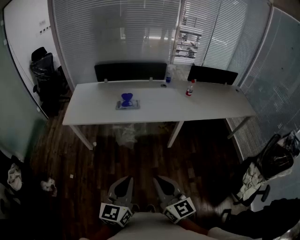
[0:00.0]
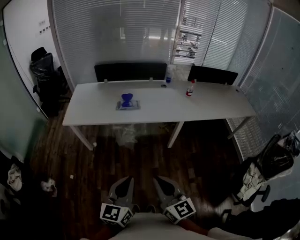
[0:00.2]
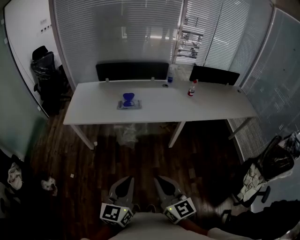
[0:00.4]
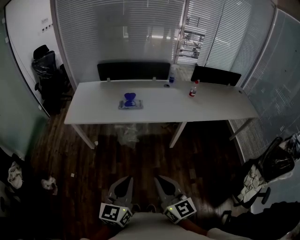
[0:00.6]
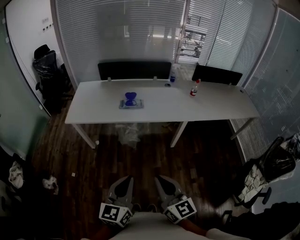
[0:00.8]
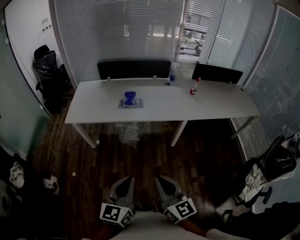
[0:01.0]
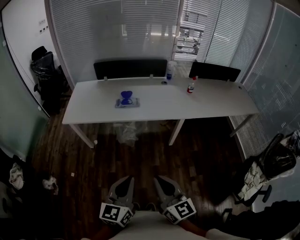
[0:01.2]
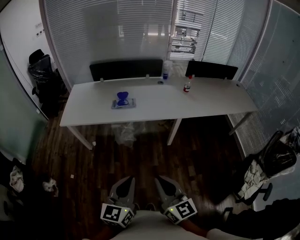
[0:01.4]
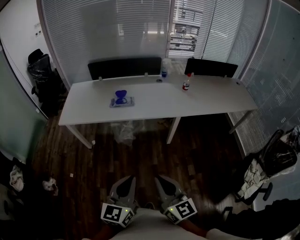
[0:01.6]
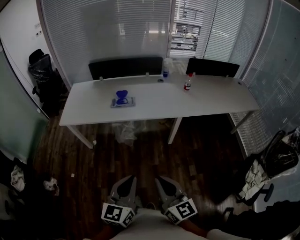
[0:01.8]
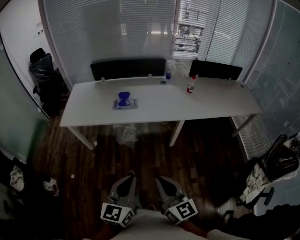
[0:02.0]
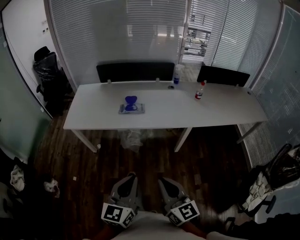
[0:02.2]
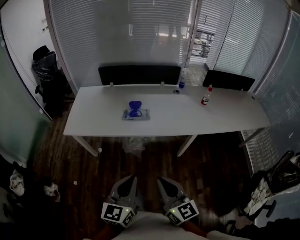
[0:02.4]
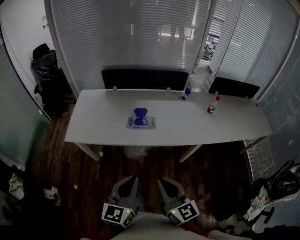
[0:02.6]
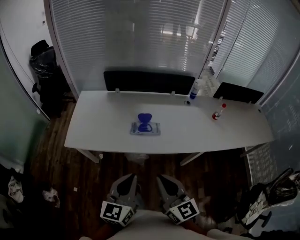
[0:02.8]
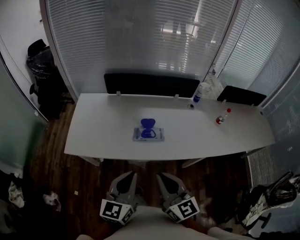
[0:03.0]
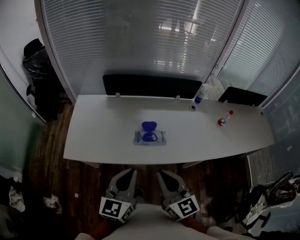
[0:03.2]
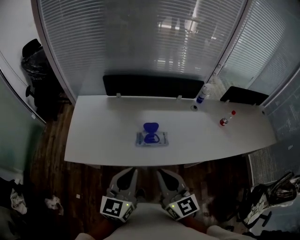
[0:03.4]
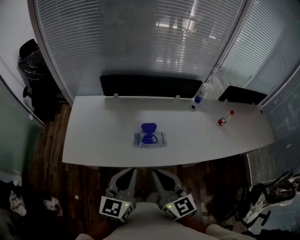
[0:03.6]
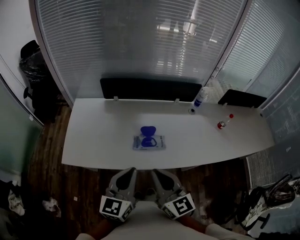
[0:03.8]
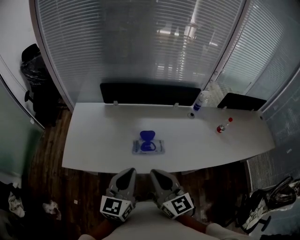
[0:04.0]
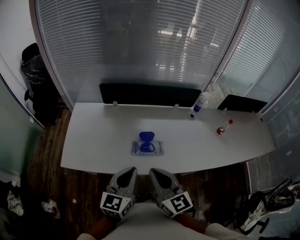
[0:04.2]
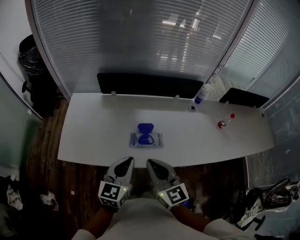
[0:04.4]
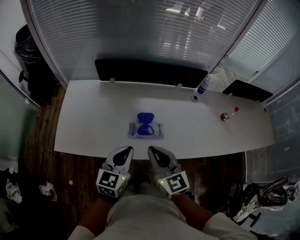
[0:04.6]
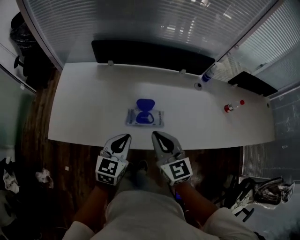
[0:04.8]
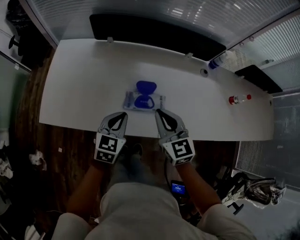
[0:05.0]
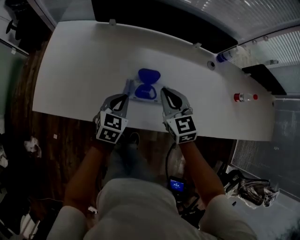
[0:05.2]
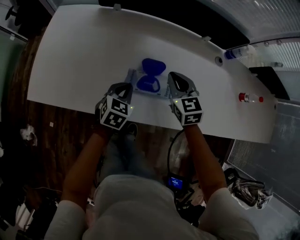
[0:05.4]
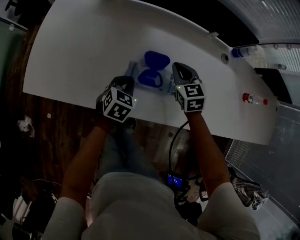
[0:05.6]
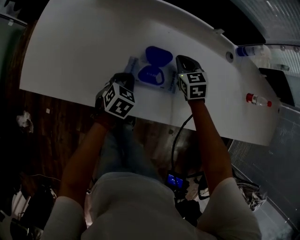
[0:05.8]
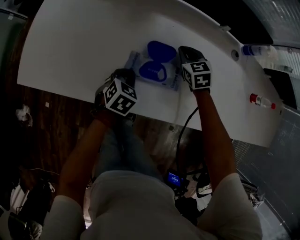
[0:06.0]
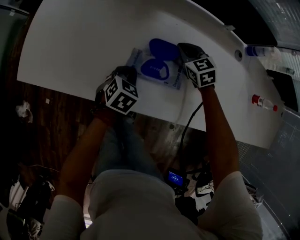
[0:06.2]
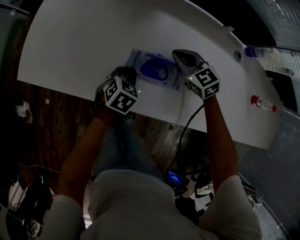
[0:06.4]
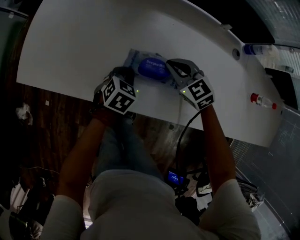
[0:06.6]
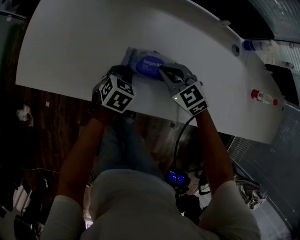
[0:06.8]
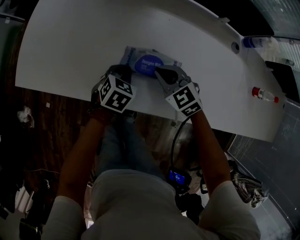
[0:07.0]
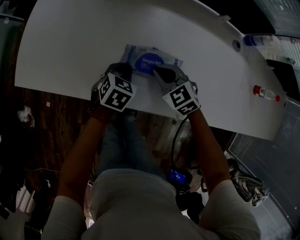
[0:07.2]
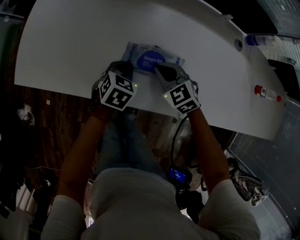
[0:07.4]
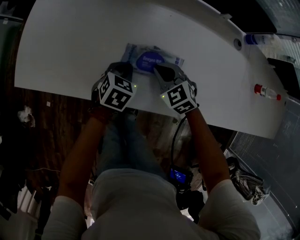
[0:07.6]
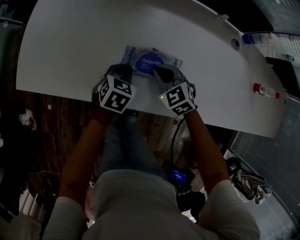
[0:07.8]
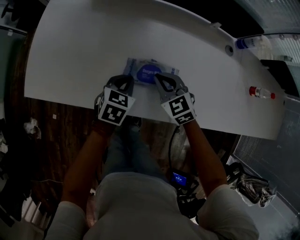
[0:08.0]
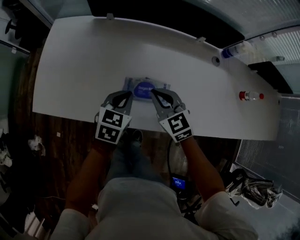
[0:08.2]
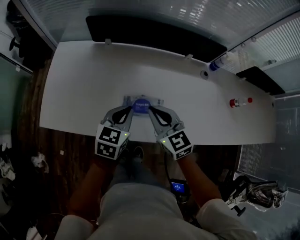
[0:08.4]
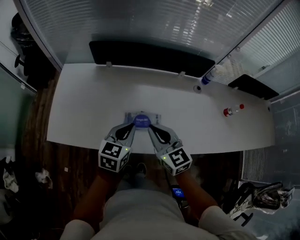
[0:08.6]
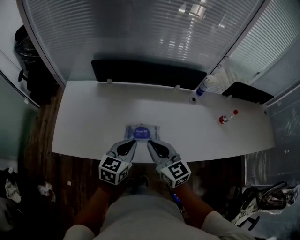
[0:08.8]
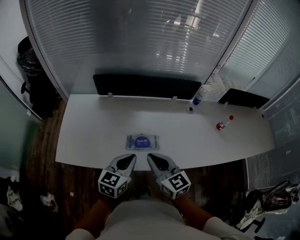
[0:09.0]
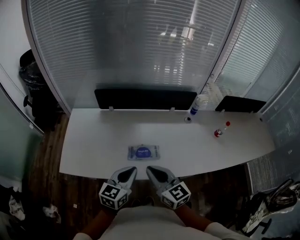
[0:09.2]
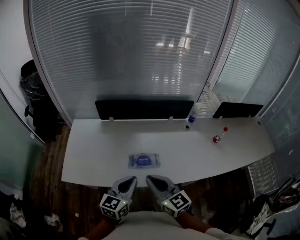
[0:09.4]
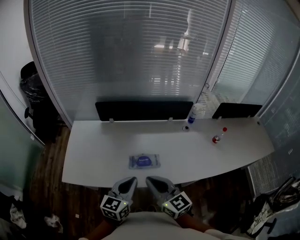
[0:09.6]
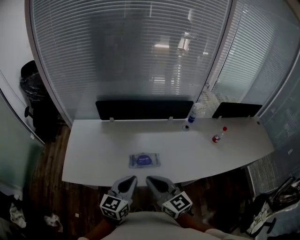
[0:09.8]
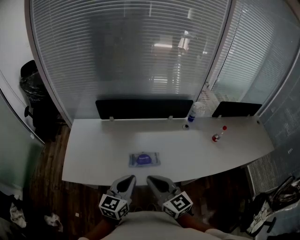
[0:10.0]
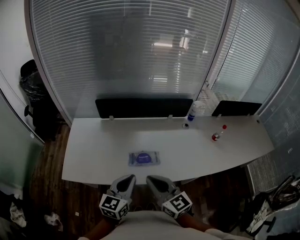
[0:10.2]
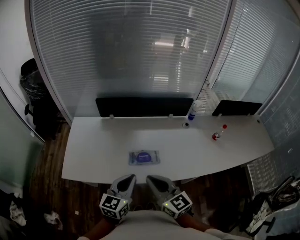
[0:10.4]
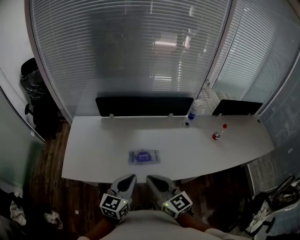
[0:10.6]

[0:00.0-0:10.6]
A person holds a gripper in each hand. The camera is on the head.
0:00.0 to 0:01.6: The grippers both shift to the right by roughly 5 cm.
0:01.6 to 0:03.0: The pair of grippers is taken forward and to the left, about 40 cm.
0:03.0 to 0:04.6: The right gripper is displaced forward by about 15 cm. The left gripper is displaced forward and downward by approximately 20 cm.
0:04.6 to 0:06.0: The left gripper heads downward, covering roughly 30 cm, and points its fingers about 40 degrees further downward, while the right gripper heads downward and forward, covering approximately 40 cm, and tips its fingers downward by about 40 degrees.
0:06.0 to 0:07.6: The right gripper moves backward and to the left, some 15 cm, and changes its angle by some 20 degrees.
0:07.6 to 0:09.0: The two grippers go about 30 cm upward. The right gripper points its fingers about 30 degrees further upward. Meanwhile the left gripper angles its fingers upward, by roughly 40 degrees.
0:09.0 to 0:10.6: Both grippers travel together backward, approximately 5 cm.

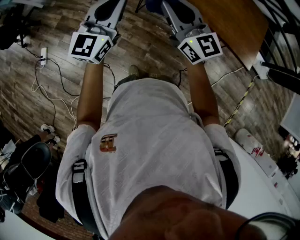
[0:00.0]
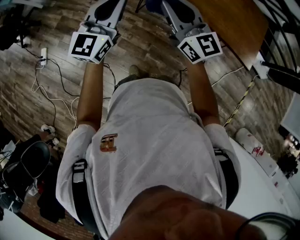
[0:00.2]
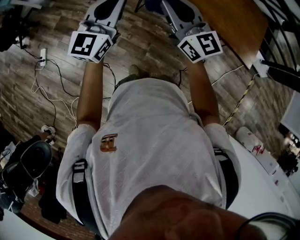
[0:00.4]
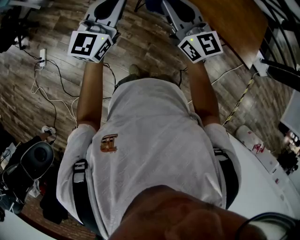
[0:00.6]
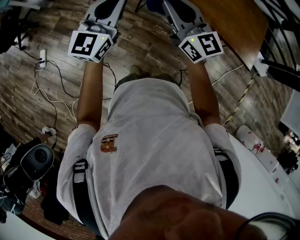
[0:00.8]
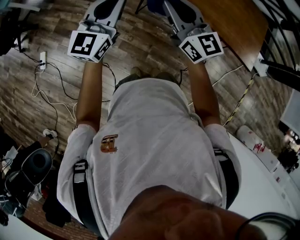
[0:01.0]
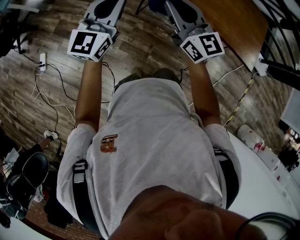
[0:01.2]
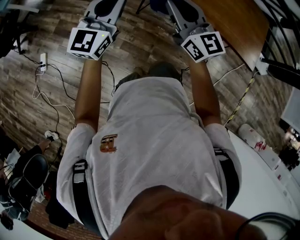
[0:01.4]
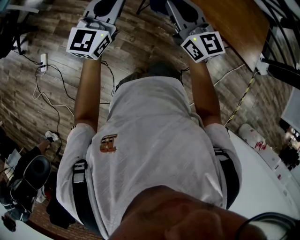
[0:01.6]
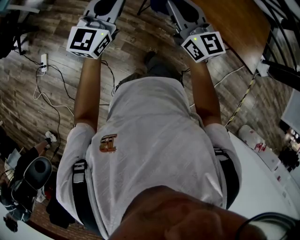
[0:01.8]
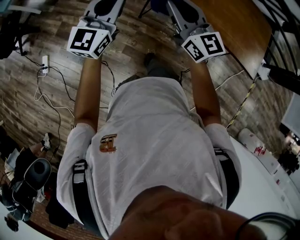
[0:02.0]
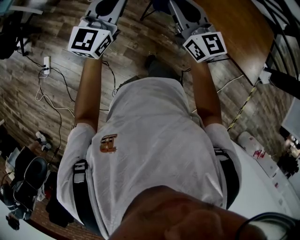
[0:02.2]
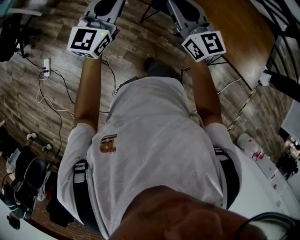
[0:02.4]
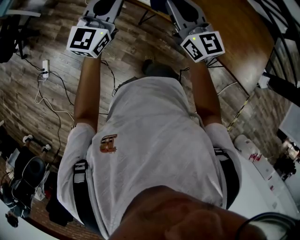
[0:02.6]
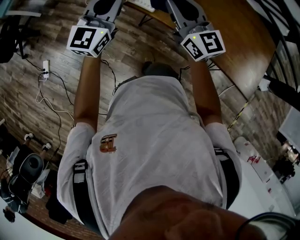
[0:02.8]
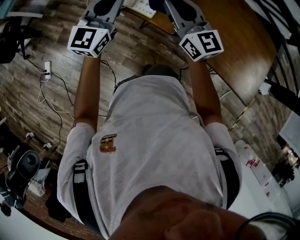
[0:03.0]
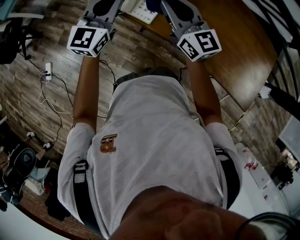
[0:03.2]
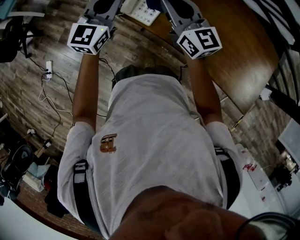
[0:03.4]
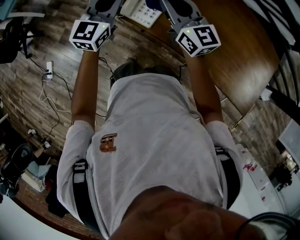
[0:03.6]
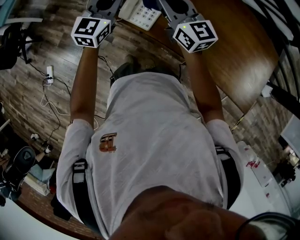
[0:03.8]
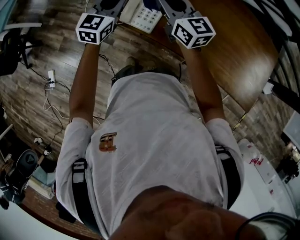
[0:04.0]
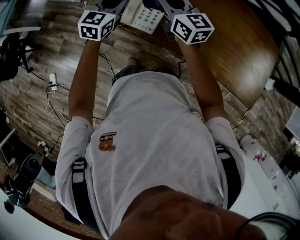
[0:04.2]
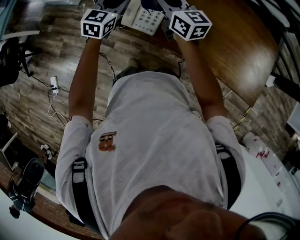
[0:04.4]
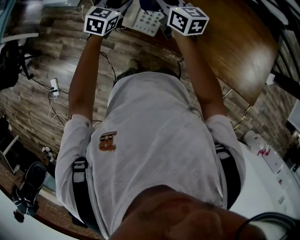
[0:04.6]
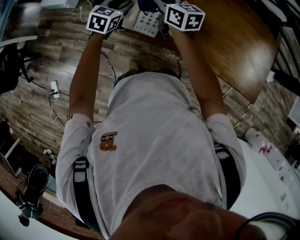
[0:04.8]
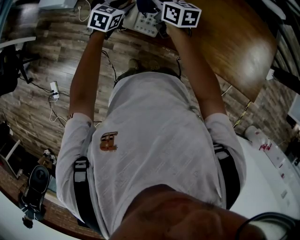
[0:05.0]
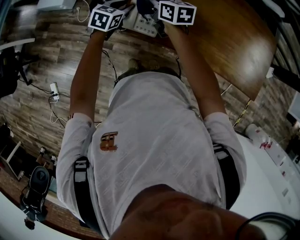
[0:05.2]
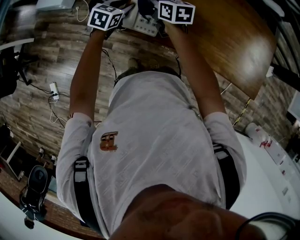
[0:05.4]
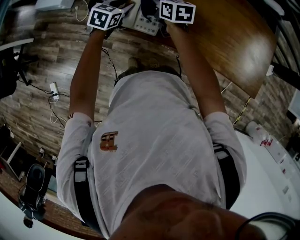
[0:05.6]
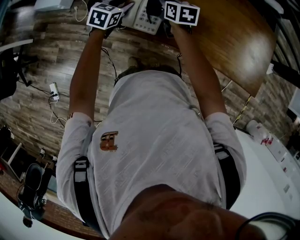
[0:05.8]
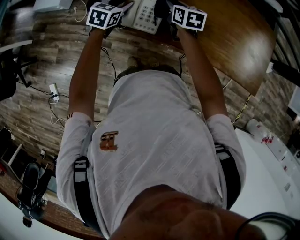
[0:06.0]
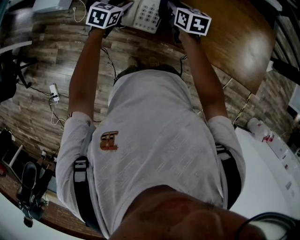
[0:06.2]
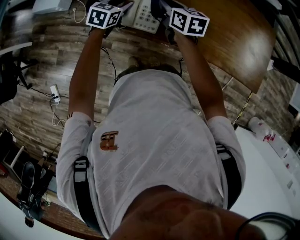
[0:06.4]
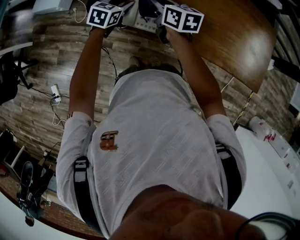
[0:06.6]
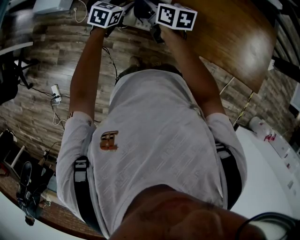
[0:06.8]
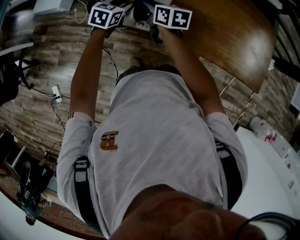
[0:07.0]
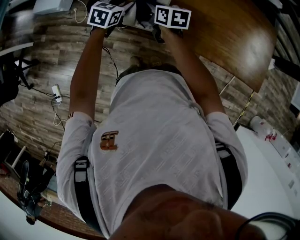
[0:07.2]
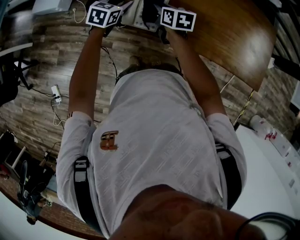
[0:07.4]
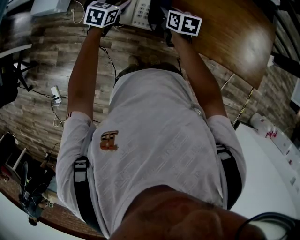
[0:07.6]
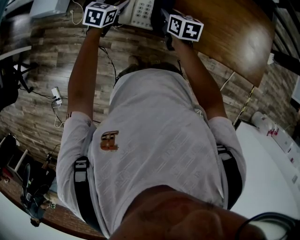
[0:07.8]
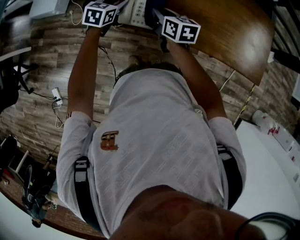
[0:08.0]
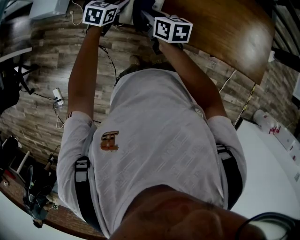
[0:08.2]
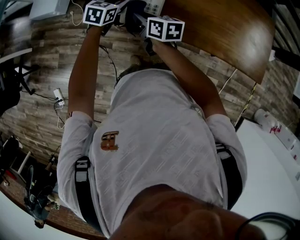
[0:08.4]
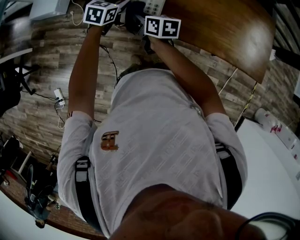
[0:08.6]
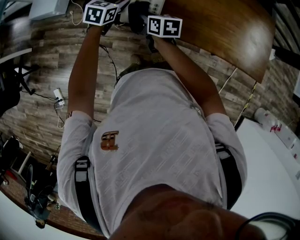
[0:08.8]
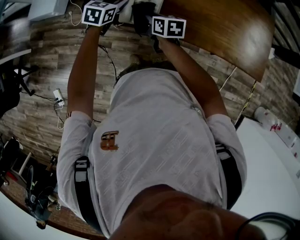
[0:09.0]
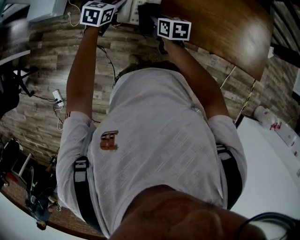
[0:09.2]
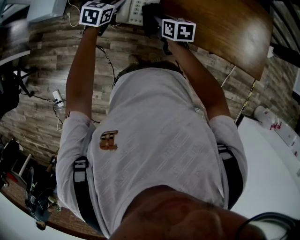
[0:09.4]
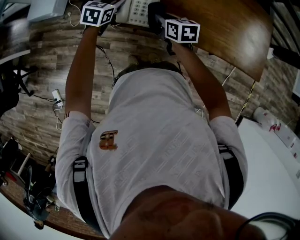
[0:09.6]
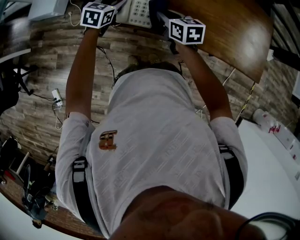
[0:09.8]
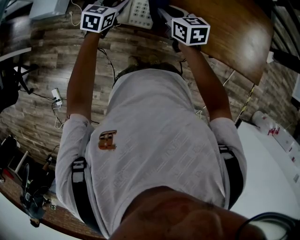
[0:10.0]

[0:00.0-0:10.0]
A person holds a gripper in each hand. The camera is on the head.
0:00.0 to 0:01.4: The two grippers go roughly 10 cm to the left and forward.
0:01.4 to 0:02.8: Both grippers move forward, roughly 30 cm.
0:02.8 to 0:04.2: The right gripper heads forward, covering some 20 cm, while the left gripper travels forward and downward by some 25 cm, and turns by roughly 20 degrees.
0:04.2 to 0:05.8: The left gripper moves downward, about 10 cm, and swivels approximately 20 degrees. Meanwhile the right gripper shifts roughly 15 cm downward and forward, and points its fingers some 30 degrees further downward.
0:07.2 to 0:08.6: The right gripper heads backward, covering roughly 5 cm, and moves about 10 cm to the right and comes back.
0:08.6 to 0:10.0: The right gripper shifts some 10 cm to the right and upward, and changes its angle by about 20 degrees.

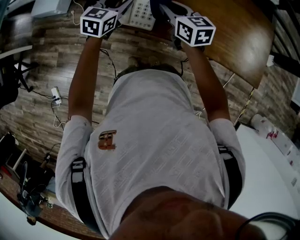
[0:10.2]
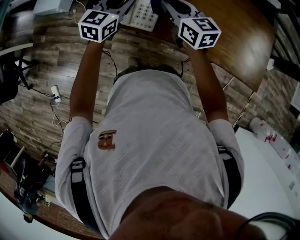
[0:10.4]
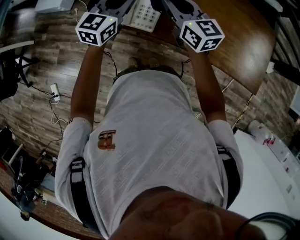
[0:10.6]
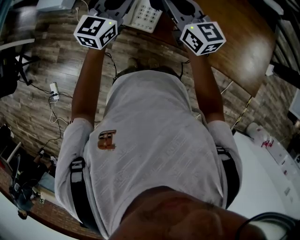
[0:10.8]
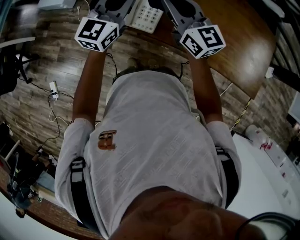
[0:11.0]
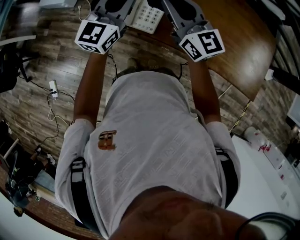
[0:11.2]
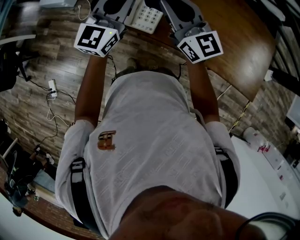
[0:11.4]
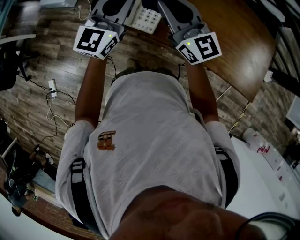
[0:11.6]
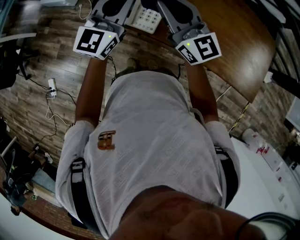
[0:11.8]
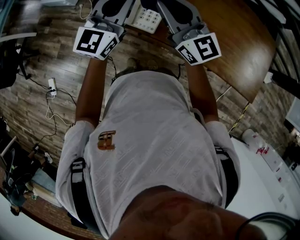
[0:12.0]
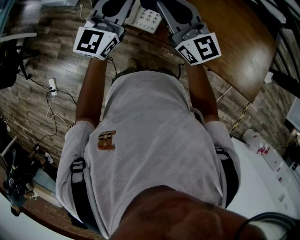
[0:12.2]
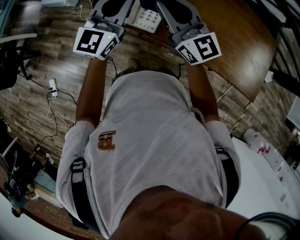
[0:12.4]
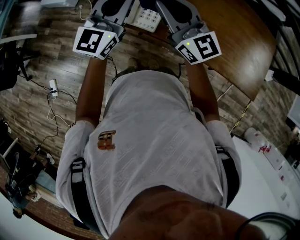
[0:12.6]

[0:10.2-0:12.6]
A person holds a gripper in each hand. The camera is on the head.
0:10.2 to 0:11.4: Both grippers move upward, some 15 cm. The right gripper turns by roughly 40 degrees; the left gripper tilts its fingers some 30 degrees upward, and closes.
0:11.4 to 0:12.6: The grippers stay close to where they were, moving slightly.
